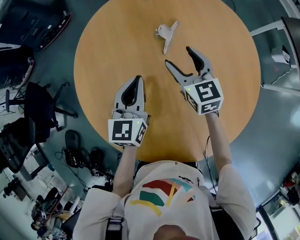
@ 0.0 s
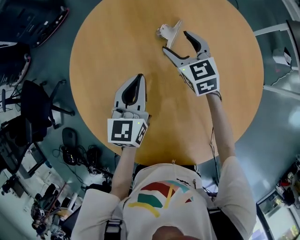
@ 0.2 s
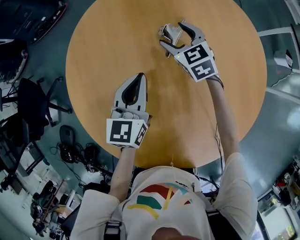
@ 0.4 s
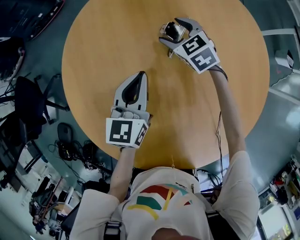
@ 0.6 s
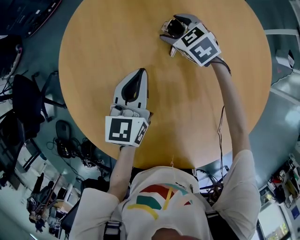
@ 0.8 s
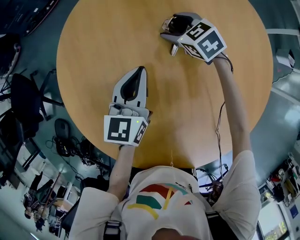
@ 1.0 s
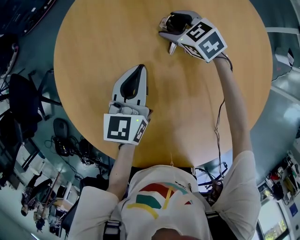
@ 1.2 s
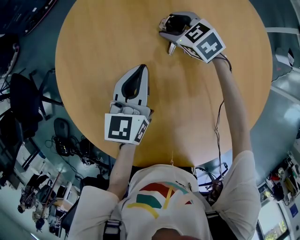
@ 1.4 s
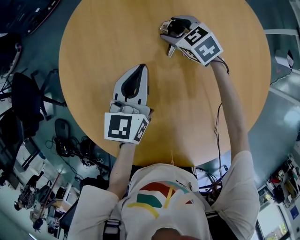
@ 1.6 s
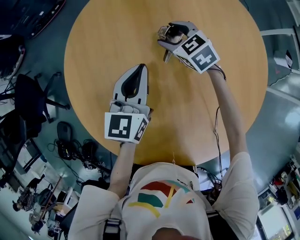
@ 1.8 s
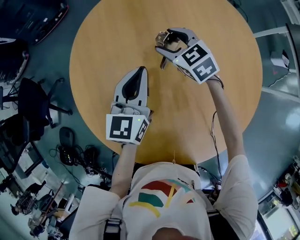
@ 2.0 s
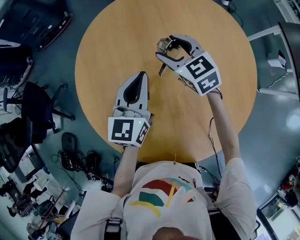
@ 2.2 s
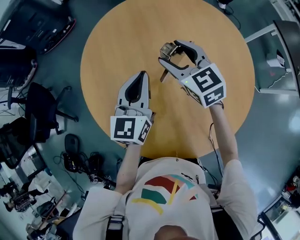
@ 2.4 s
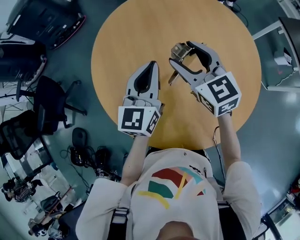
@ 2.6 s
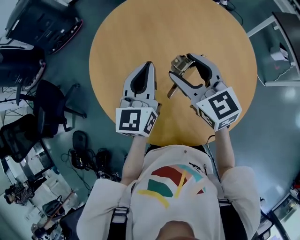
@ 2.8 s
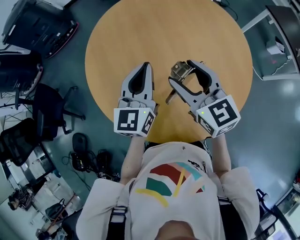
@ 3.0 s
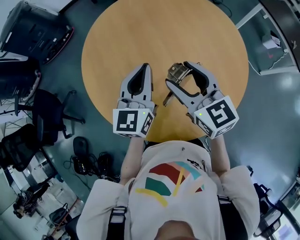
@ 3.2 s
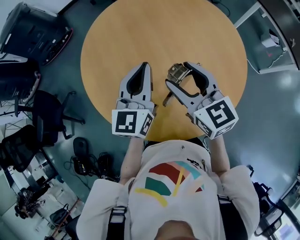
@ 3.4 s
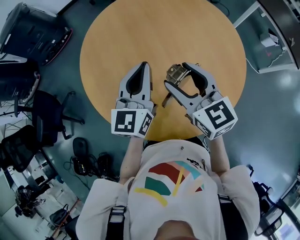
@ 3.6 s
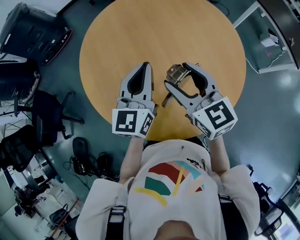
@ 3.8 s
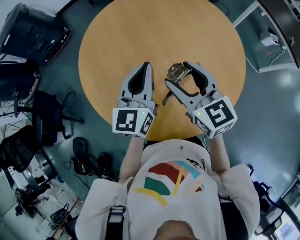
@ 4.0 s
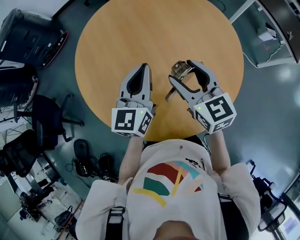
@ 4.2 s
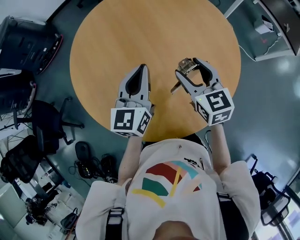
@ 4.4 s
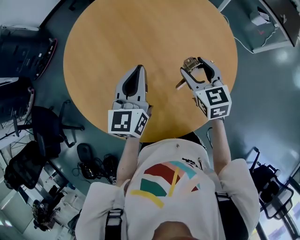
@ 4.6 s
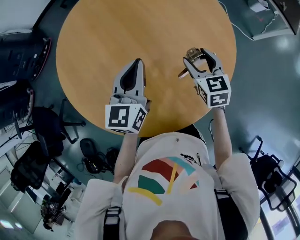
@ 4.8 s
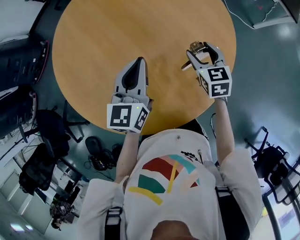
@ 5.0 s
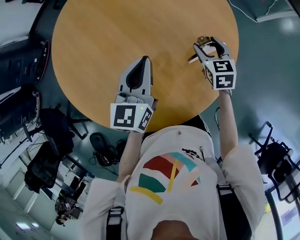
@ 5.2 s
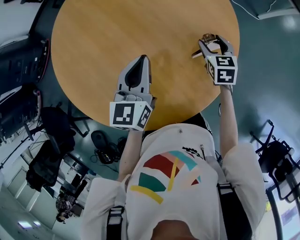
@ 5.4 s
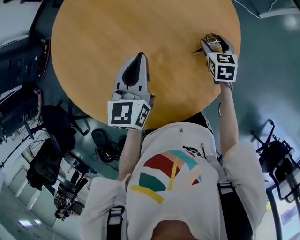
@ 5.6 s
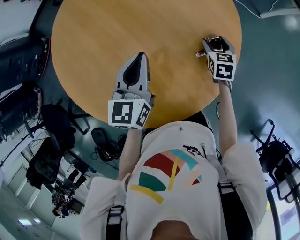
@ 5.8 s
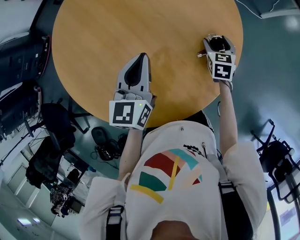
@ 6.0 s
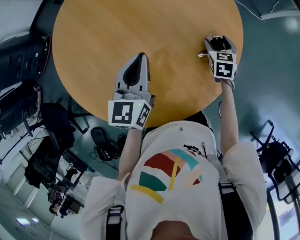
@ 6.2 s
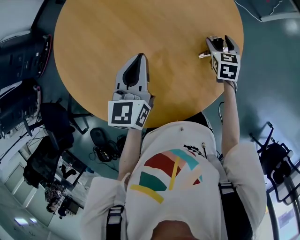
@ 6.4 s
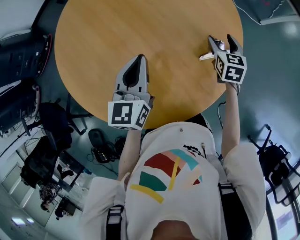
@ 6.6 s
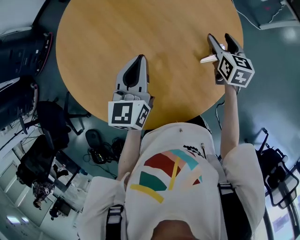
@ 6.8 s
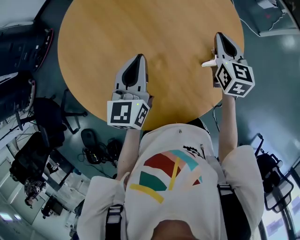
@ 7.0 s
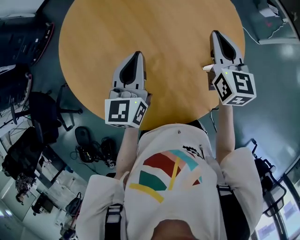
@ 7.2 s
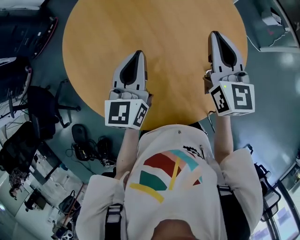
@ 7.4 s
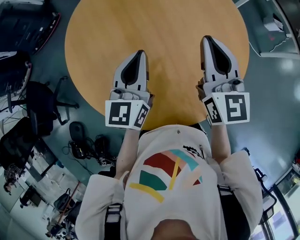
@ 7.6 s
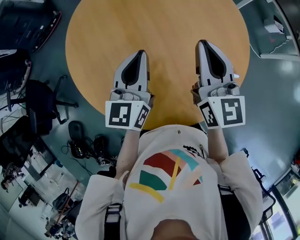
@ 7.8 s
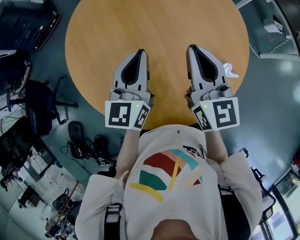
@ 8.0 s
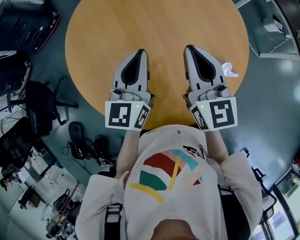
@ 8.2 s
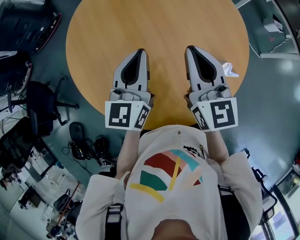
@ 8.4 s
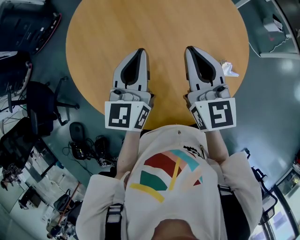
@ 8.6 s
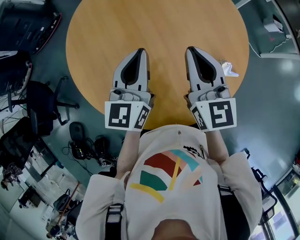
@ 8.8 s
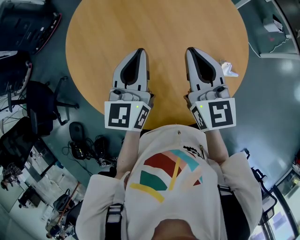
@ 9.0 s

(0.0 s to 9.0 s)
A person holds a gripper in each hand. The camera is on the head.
0.0 s - 1.6 s: The right gripper heads downward and forward, covering about 25 cm, and rotates about 40 degrees; the left gripper heads forward and downward, covering roughly 10 cm.
1.6 s - 3.0 s: The left gripper shifts about 30 cm backward and upward. The right gripper travels backward and upward by some 50 cm, and tips its fingers upward by some 30 degrees.
3.0 s - 4.4 s: The right gripper moves to the right and downward, about 15 cm; the left gripper shifts some 10 cm to the right.
4.4 s - 6.0 s: The left gripper moves to the right and downward, about 15 cm; the right gripper shifts about 35 cm to the right and downward, and rotates roughly 40 degrees.
6.0 s - 7.6 s: The right gripper shifts roughly 40 cm upward and to the left, tips its fingers upward by about 40 degrees, and closes its fingers. The left gripper heads to the left and upward, covering about 15 cm.
7.6 s - 9.0 s: The right gripper moves some 5 cm.

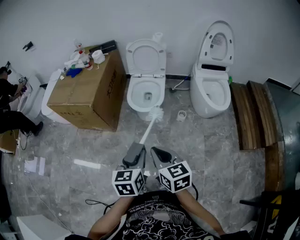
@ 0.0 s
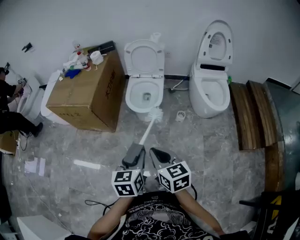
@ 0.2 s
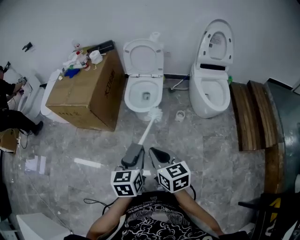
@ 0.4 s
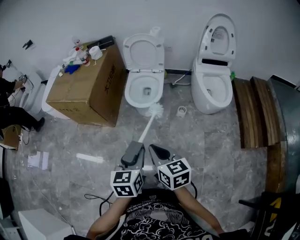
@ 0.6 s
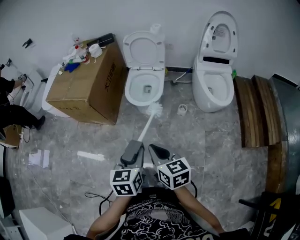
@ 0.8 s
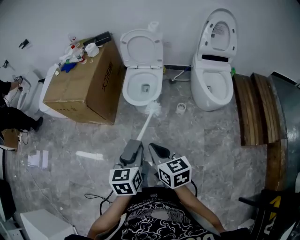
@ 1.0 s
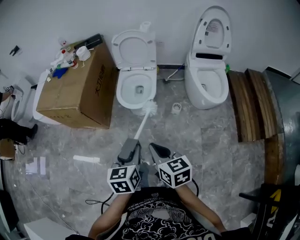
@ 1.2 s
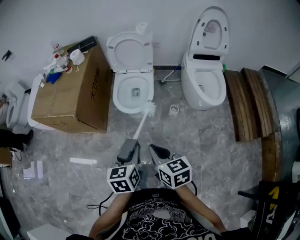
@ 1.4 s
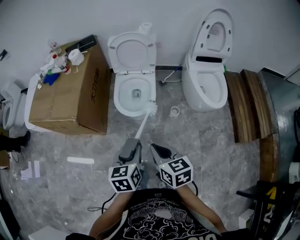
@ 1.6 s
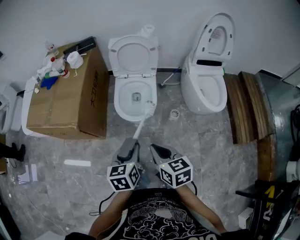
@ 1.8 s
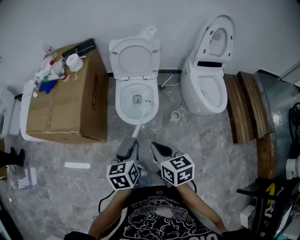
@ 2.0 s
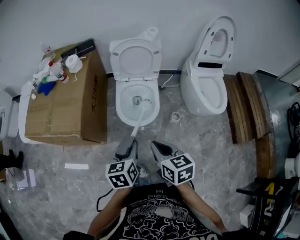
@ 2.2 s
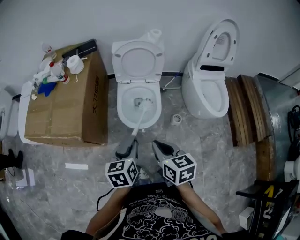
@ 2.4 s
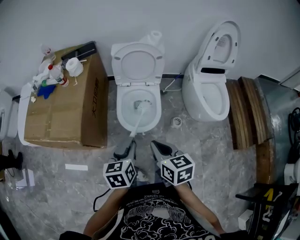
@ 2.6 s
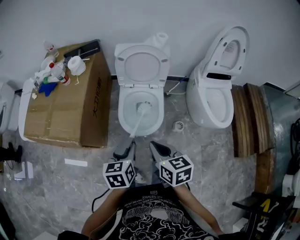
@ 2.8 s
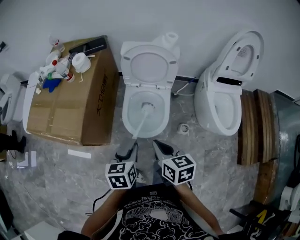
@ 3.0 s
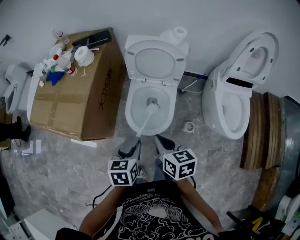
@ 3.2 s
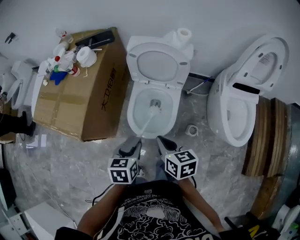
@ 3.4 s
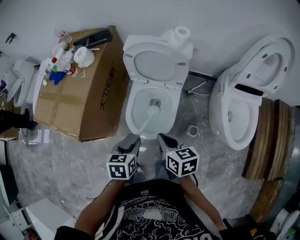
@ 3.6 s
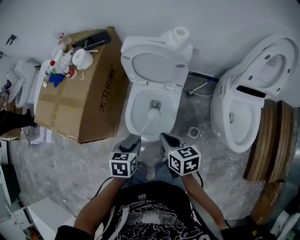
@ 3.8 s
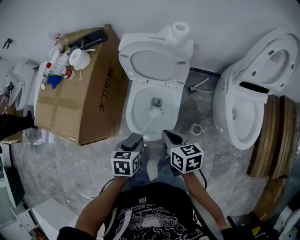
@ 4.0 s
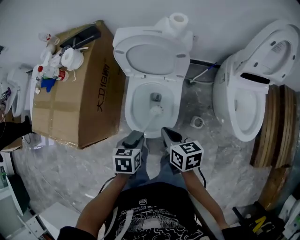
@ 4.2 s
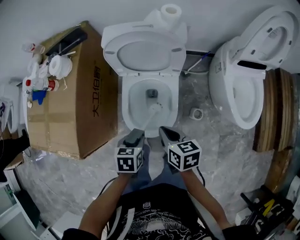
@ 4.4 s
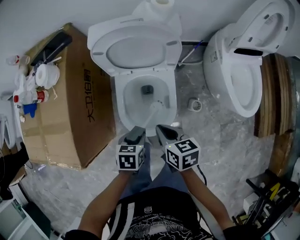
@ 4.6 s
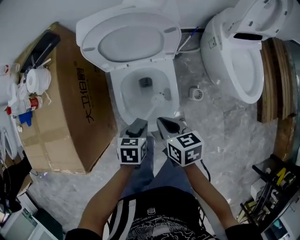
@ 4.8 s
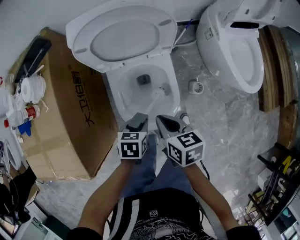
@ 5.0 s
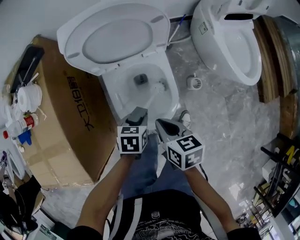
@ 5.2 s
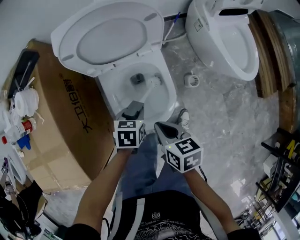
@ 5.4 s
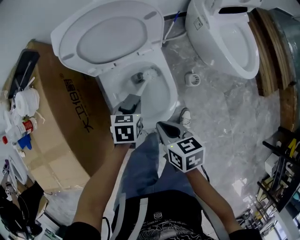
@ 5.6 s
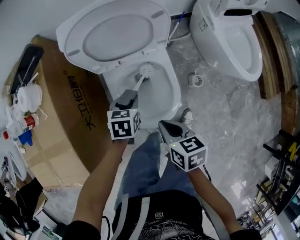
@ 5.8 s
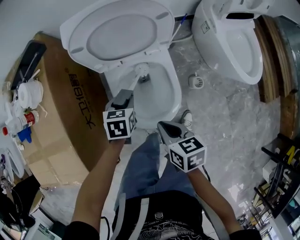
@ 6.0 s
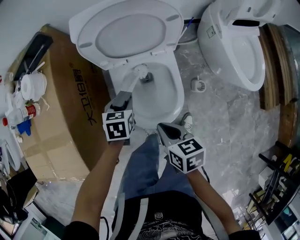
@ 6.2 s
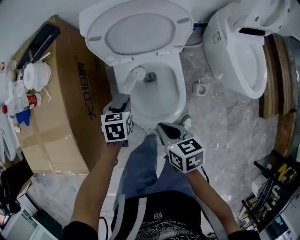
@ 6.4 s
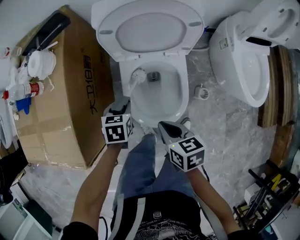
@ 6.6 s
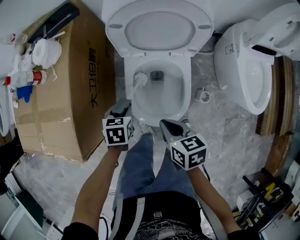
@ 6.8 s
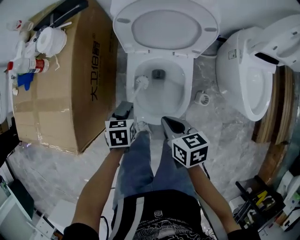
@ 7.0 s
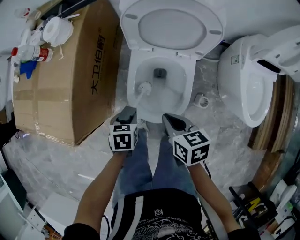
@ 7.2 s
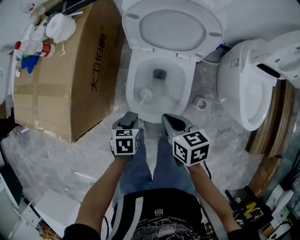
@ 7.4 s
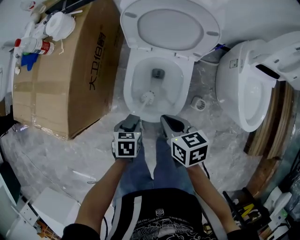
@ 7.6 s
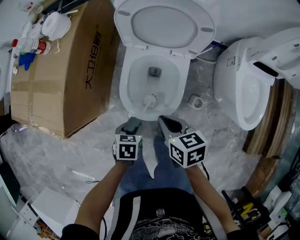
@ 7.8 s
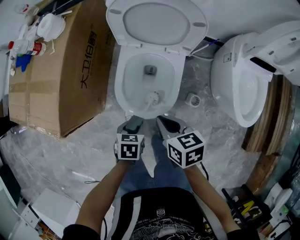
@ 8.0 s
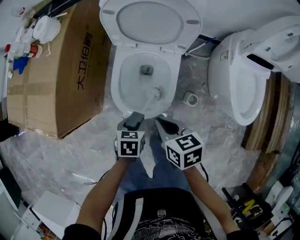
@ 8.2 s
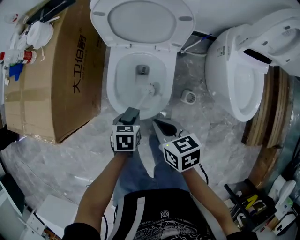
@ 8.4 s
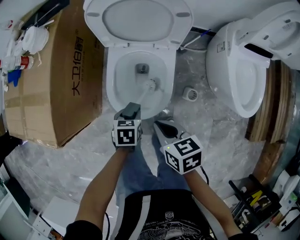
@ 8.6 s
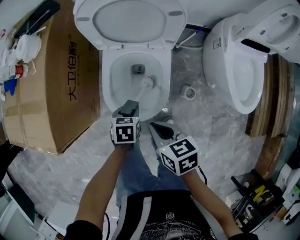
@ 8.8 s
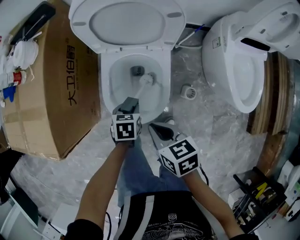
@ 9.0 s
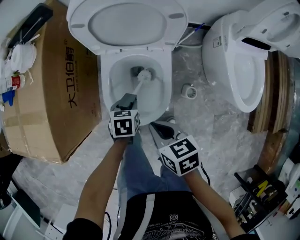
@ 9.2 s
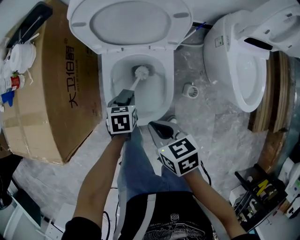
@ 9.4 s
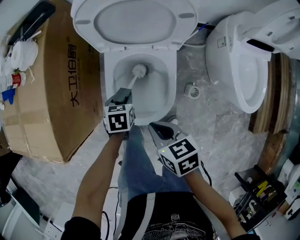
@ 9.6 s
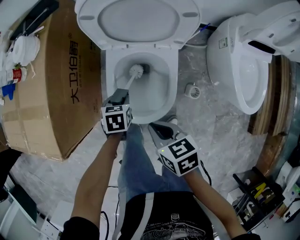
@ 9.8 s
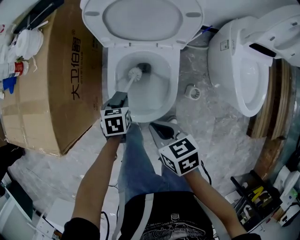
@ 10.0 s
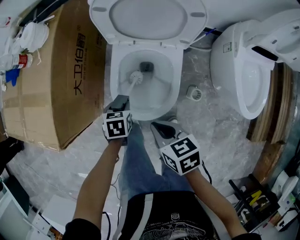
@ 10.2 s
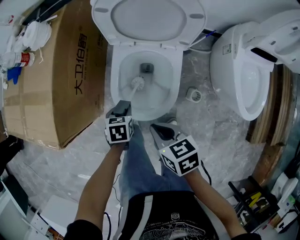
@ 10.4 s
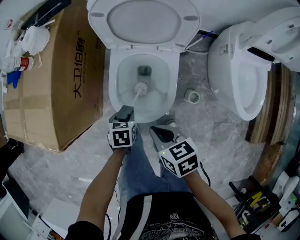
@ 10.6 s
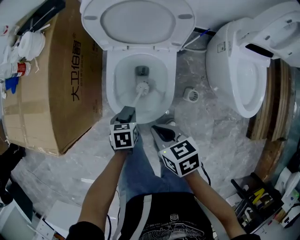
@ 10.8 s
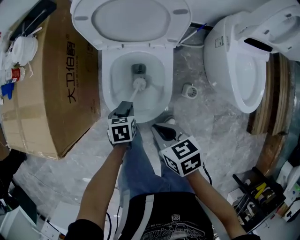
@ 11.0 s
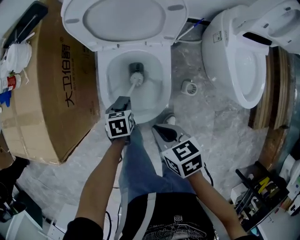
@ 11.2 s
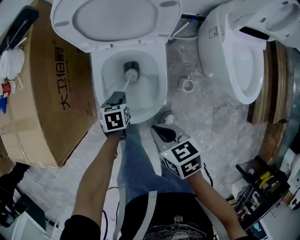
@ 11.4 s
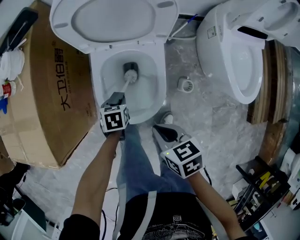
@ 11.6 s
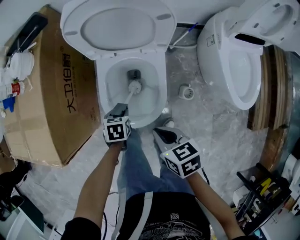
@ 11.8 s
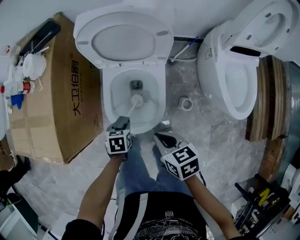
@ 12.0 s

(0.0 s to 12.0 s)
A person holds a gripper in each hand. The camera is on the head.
0.0 s - 1.6 s: The two grippers go roughly 15 cm forward.
1.6 s - 3.0 s: Both grippers travel together forward, roughly 20 cm.
3.0 s - 4.4 s: The left gripper is displaced downward and forward by roughly 15 cm, and rotates approximately 20 degrees; the right gripper travels downward, forward and to the right by some 20 cm.
4.4 s - 6.0 s: The right gripper is displaced to the left and downward by approximately 5 cm. Meanwhile the left gripper heads forward and downward, covering roughly 15 cm.
6.0 s - 7.6 s: The left gripper heads backward, covering approximately 20 cm, and rotates approximately 30 degrees; the right gripper rotates about 30 degrees.
7.6 s - 9.0 s: The left gripper is displaced to the right and forward by about 10 cm.
9.0 s - 10.4 s: The left gripper goes some 10 cm to the left.
10.4 s - 12.0 s: The right gripper moves to the right, some 5 cm.

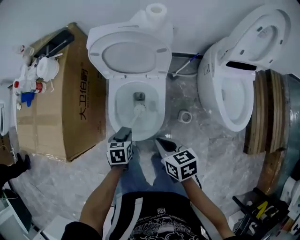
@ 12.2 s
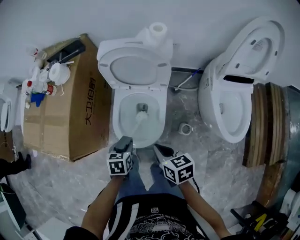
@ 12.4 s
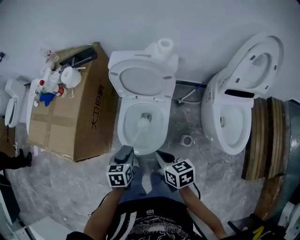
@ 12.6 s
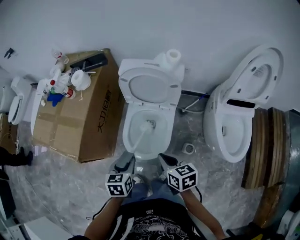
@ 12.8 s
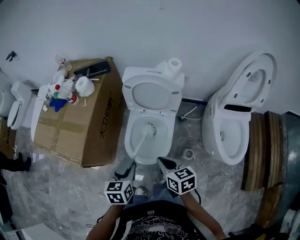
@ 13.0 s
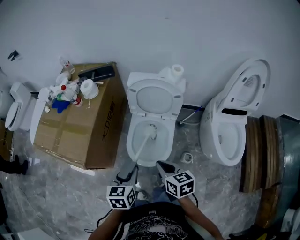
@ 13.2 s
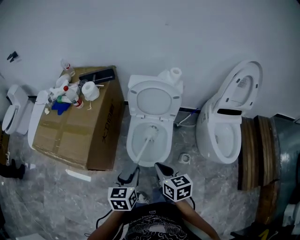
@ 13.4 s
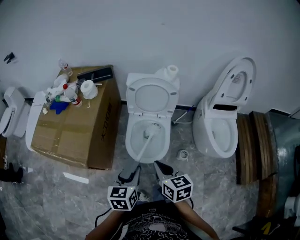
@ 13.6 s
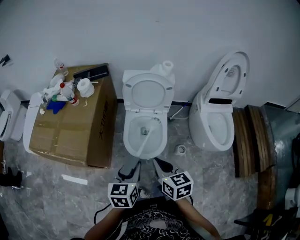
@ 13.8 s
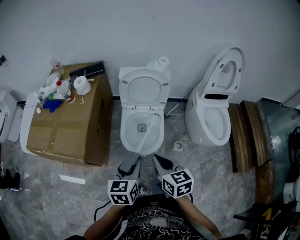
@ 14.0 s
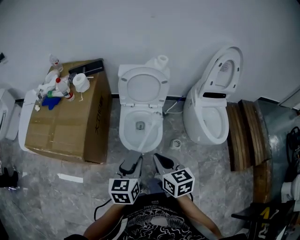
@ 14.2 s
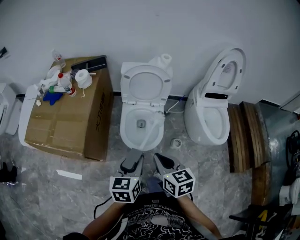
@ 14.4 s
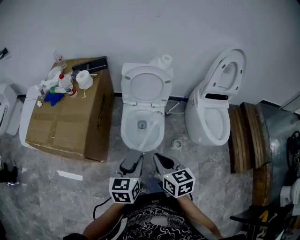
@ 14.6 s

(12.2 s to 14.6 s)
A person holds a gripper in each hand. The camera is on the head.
12.2 s - 13.4 s: The left gripper heads upward, covering roughly 25 cm, and angles its fingers upward, by roughly 30 degrees, while the right gripper heads upward and to the left, covering approximately 15 cm.
13.4 s - 14.6 s: The left gripper shifts by approximately 5 cm; the right gripper goes about 5 cm backward.
